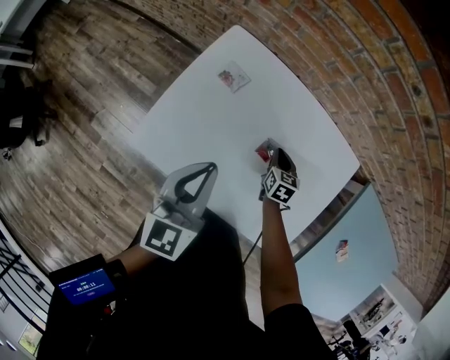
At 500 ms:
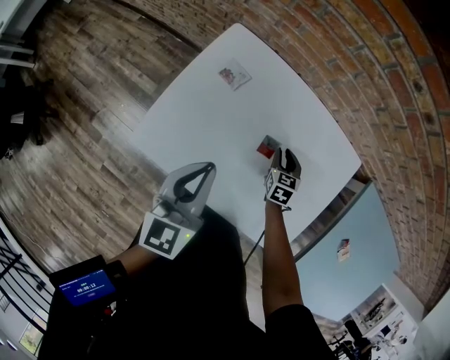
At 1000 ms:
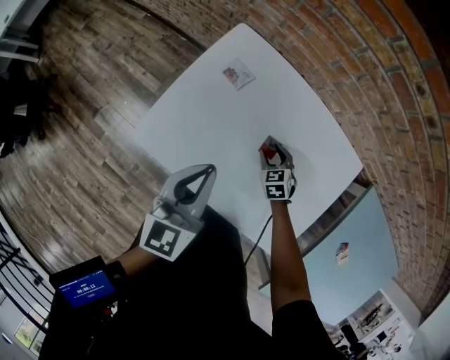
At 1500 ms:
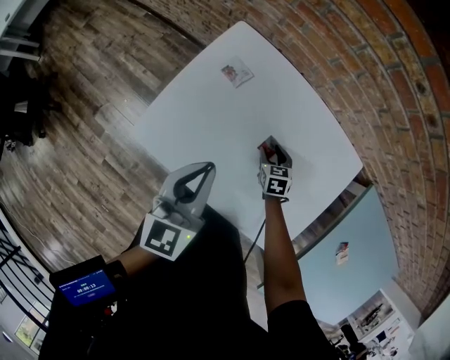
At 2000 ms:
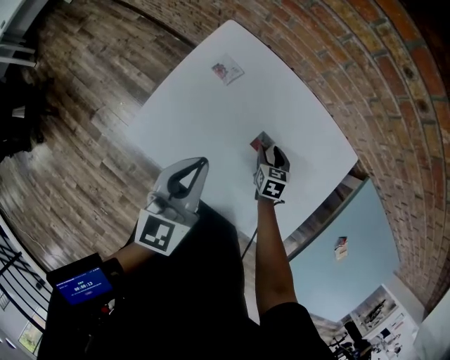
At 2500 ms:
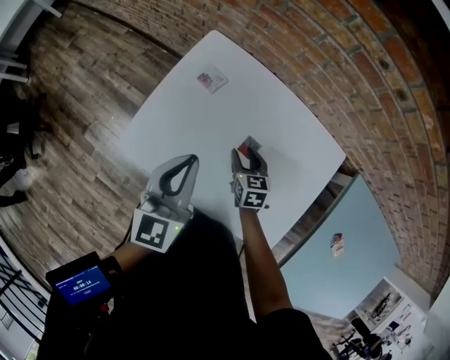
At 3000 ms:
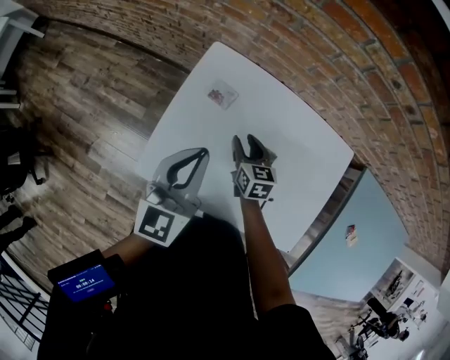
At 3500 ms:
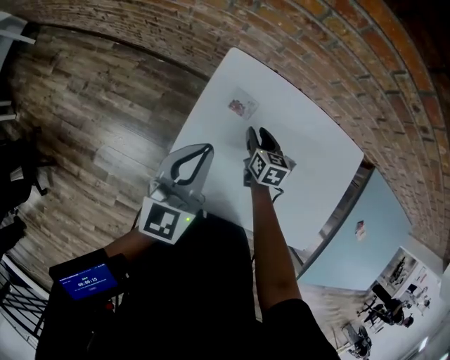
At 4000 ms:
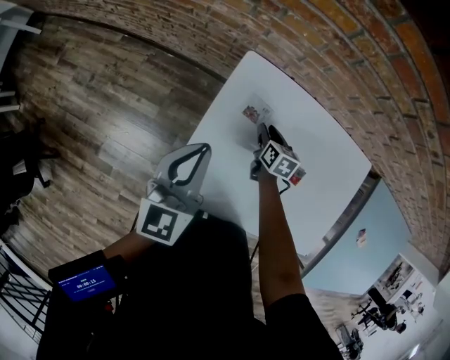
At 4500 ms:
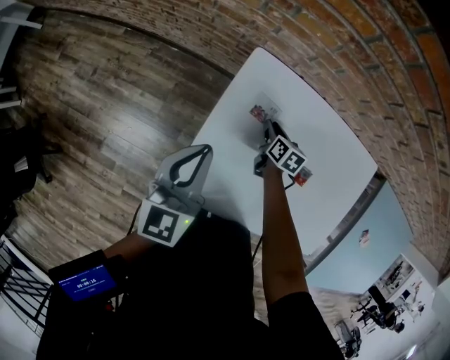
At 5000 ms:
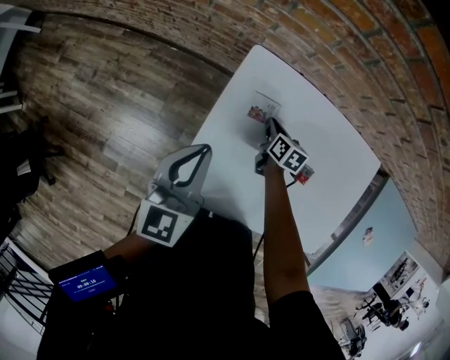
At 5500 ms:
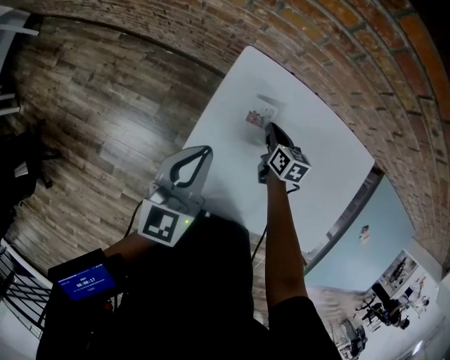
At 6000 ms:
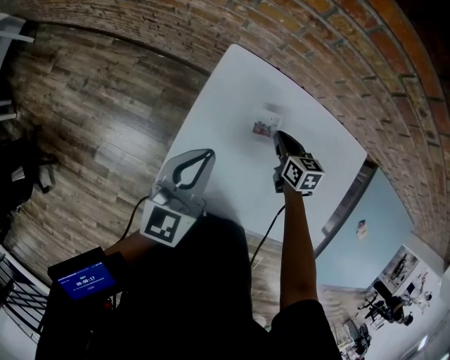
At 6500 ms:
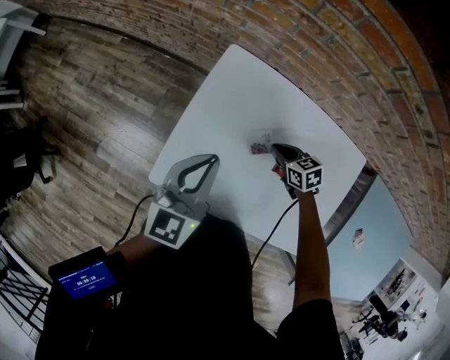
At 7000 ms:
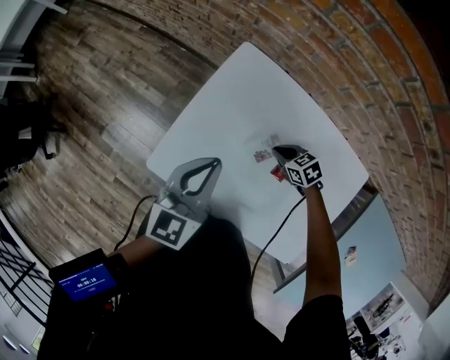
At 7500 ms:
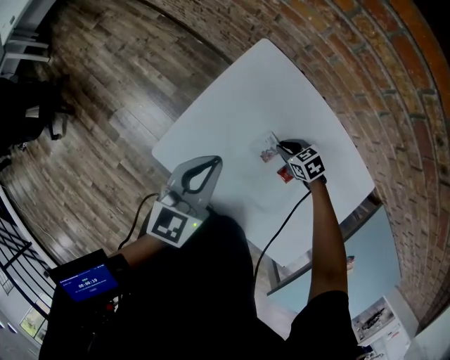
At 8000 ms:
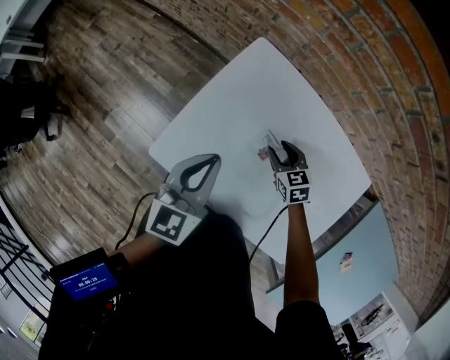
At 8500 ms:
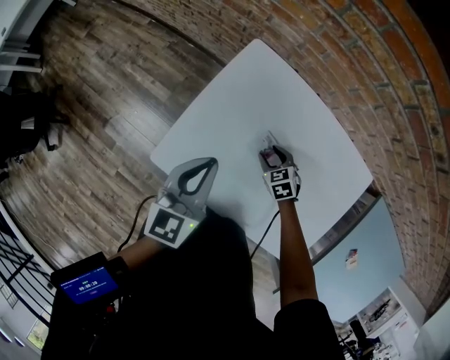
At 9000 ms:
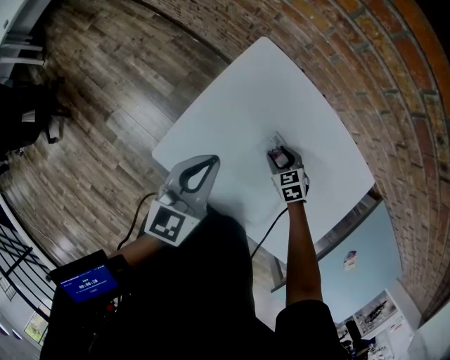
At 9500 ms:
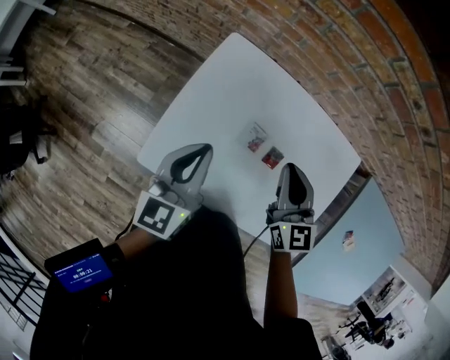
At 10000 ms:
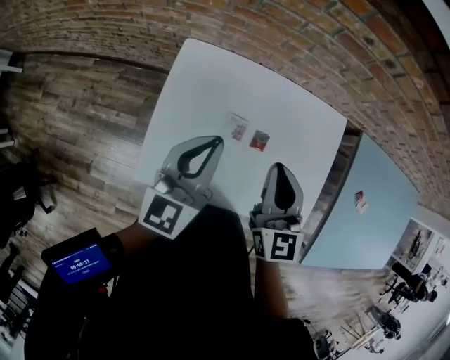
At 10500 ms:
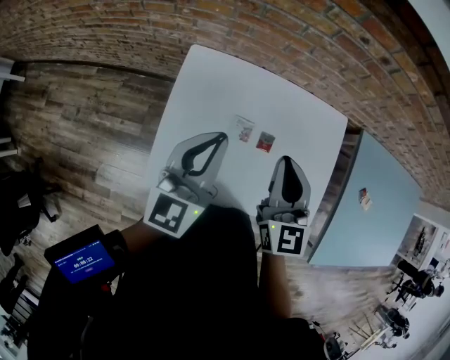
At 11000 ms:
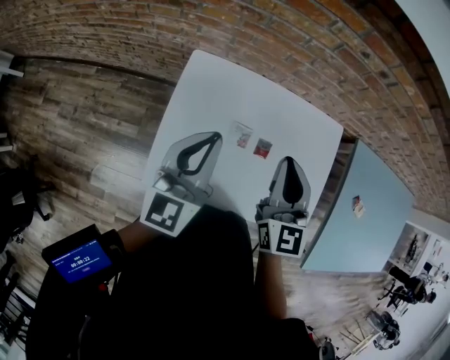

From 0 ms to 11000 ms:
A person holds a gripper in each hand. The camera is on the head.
From 0 ms to 2000 ms: The right gripper opens.
From 2000 ms to 3500 ms: Both grippers move to the left and forward, about 20 cm.
From 3500 ms to 5500 ms: The left gripper changes place by about 5 cm. The right gripper closes its fingers.
From 5500 ms to 7500 ms: The left gripper moves approximately 10 cm. Meanwhile the right gripper shifts by about 15 cm, and changes its angle by approximately 70 degrees.
From 7500 ms to 9000 ms: The right gripper rotates some 20 degrees, and opens its fingers.
From 9000 ms to 11000 ms: The right gripper heads upward, covering some 35 cm, tips its fingers upward by roughly 50 degrees, and closes; the left gripper travels upward by approximately 10 cm, and rotates roughly 30 degrees.

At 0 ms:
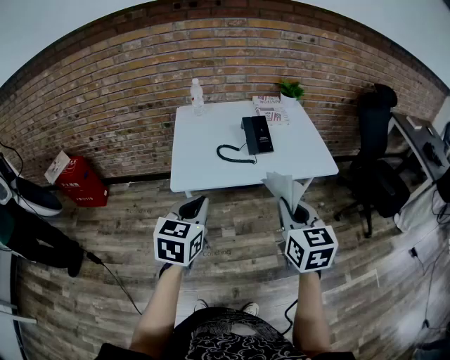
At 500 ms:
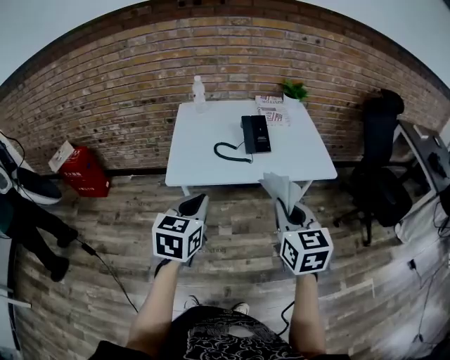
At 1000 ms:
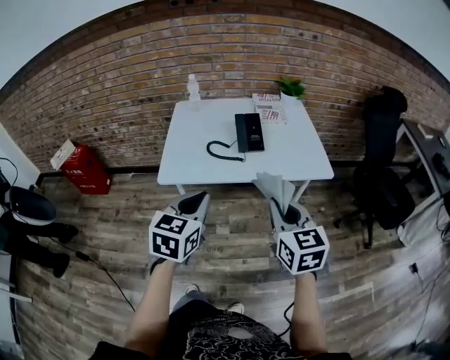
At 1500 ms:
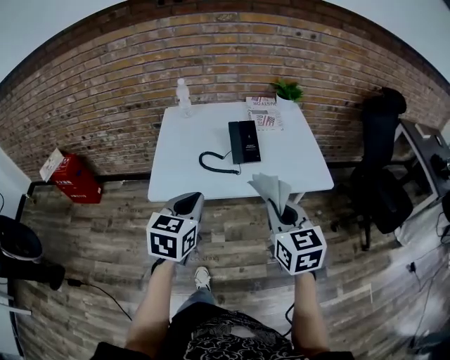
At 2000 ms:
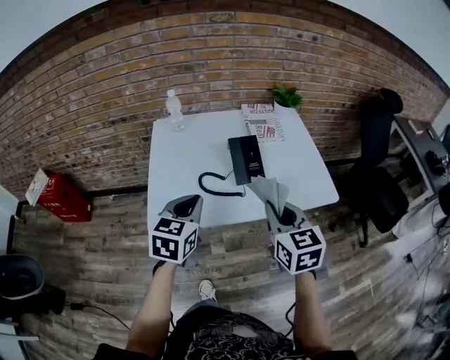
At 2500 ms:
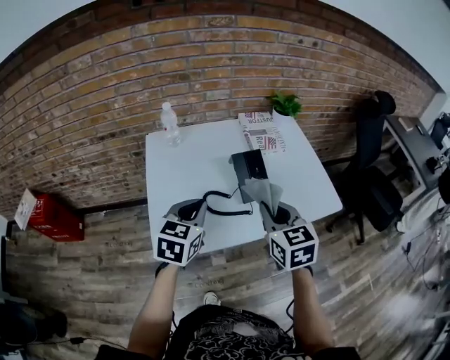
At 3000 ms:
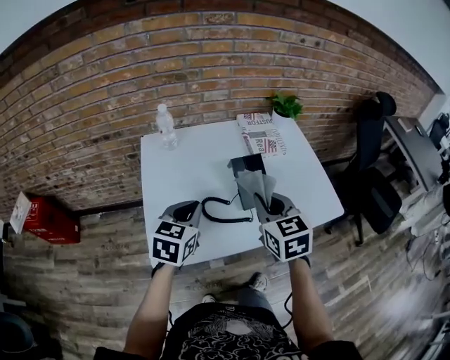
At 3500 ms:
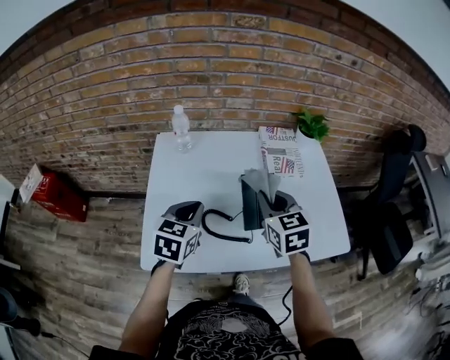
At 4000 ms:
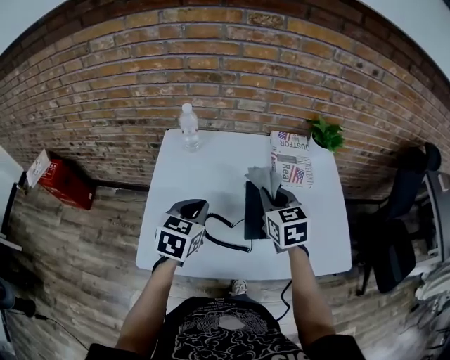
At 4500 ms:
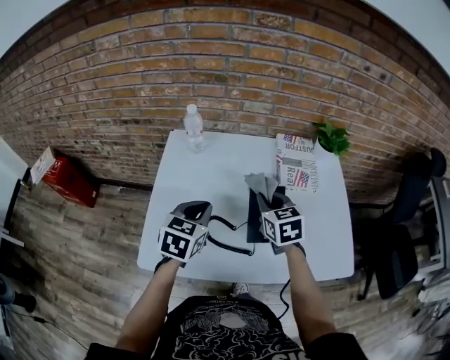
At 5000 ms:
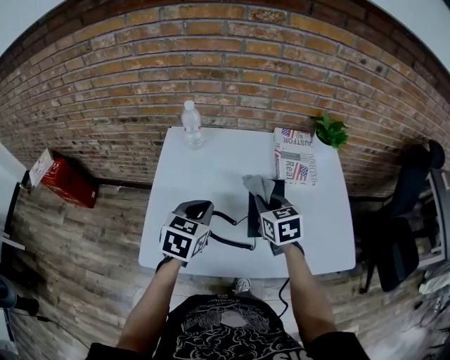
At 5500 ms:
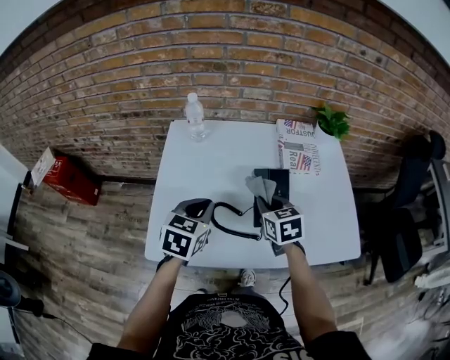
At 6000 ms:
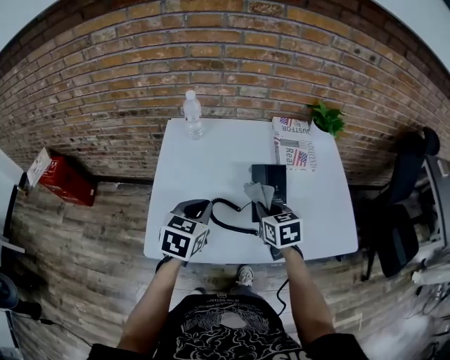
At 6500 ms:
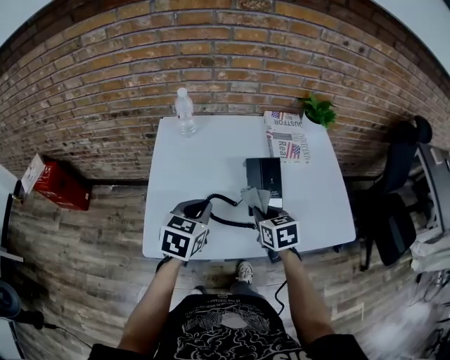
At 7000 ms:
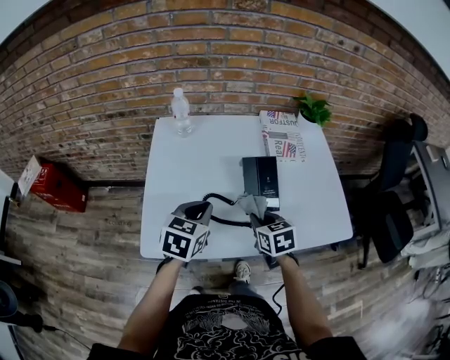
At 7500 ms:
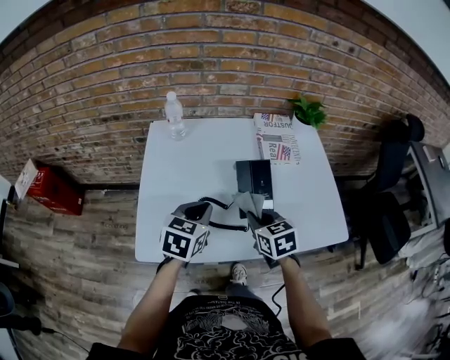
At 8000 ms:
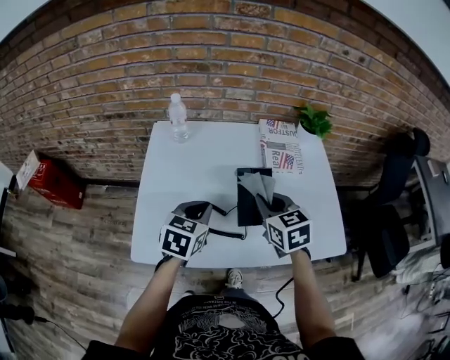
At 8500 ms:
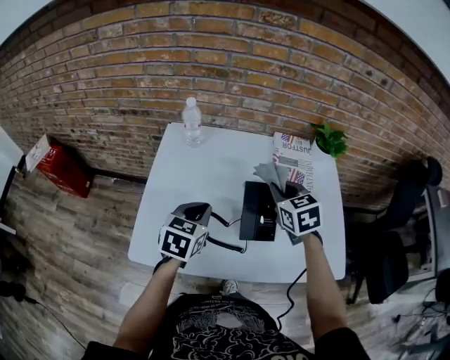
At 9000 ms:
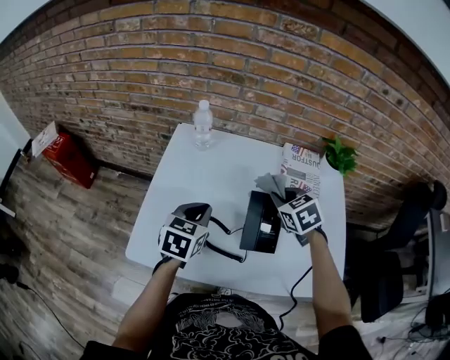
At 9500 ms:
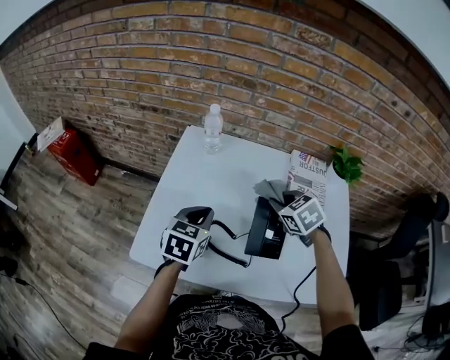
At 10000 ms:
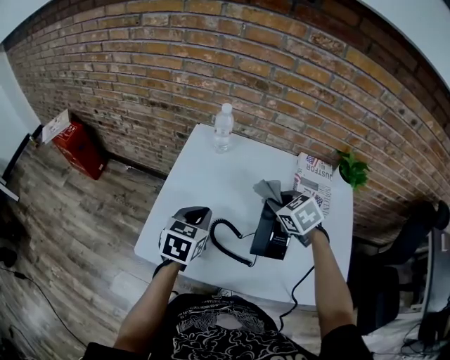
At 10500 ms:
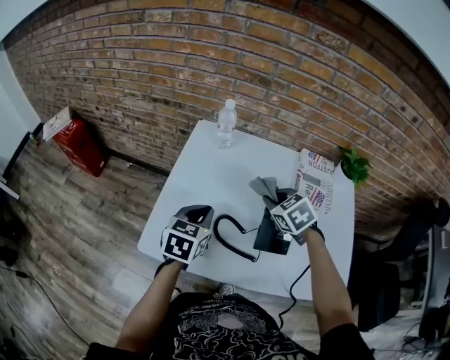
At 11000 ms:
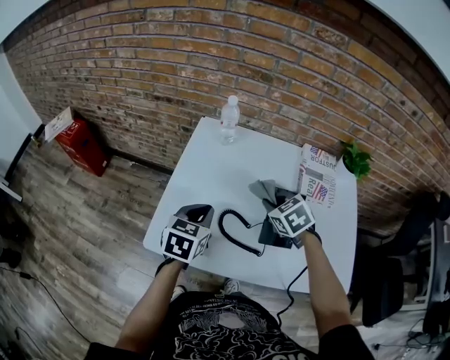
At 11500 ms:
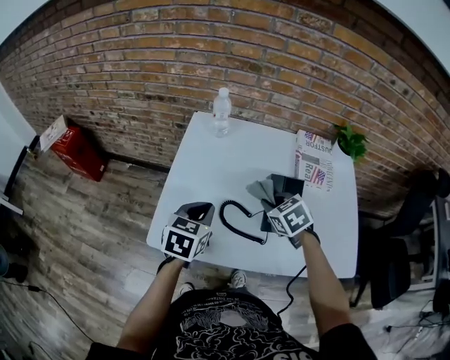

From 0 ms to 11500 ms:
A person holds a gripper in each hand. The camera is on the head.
From 0 ms to 2000 ms: Both grippers move forward, approximately 20 cm.
From 2000 ms to 4000 ms: Both grippers move forward, approximately 25 cm.
From 4000 ms to 6000 ms: The left gripper ends up about 5 cm from where it was. The right gripper goes roughly 10 cm downward and backward.
From 7500 ms to 9500 ms: The right gripper goes approximately 15 cm forward, and changes its angle by roughly 40 degrees; the left gripper moves forward, some 5 cm.
From 9500 ms to 11500 ms: The left gripper is displaced backward by about 5 cm. The right gripper shifts about 10 cm backward and to the left.

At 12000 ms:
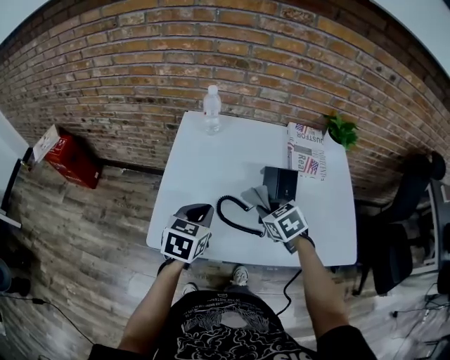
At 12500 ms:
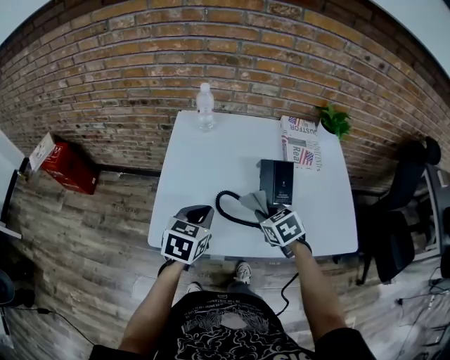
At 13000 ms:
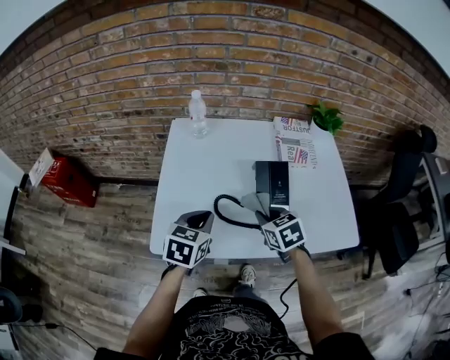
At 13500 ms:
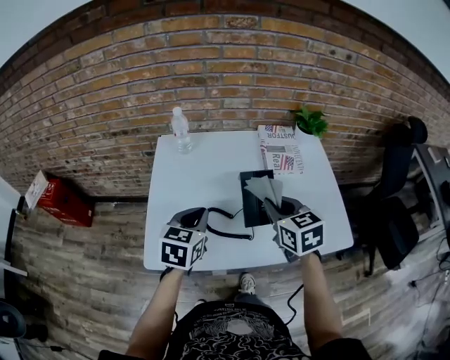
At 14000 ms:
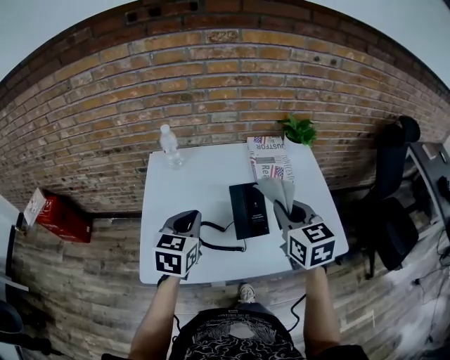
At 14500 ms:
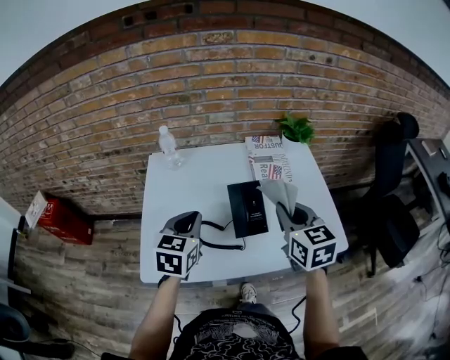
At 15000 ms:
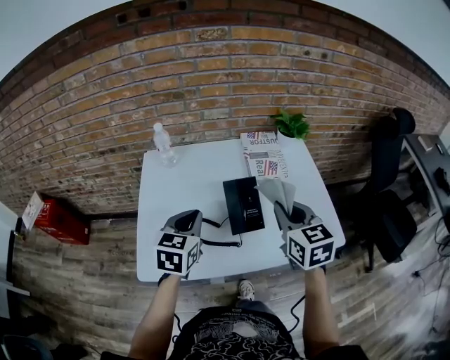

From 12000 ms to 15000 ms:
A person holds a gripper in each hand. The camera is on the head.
From 12000 ms to 13500 ms: The left gripper ends up roughly 5 cm from where it was, while the right gripper heads upward and to the right, covering about 15 cm, and changes its angle by about 30 degrees.
From 13500 ms to 15000 ms: The right gripper travels to the right by approximately 5 cm.

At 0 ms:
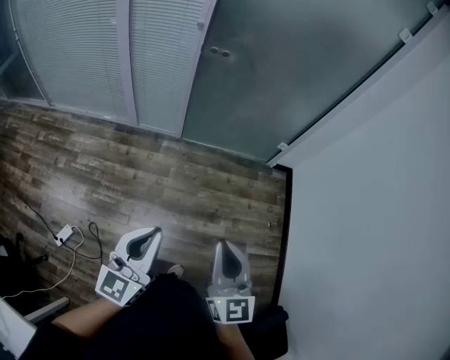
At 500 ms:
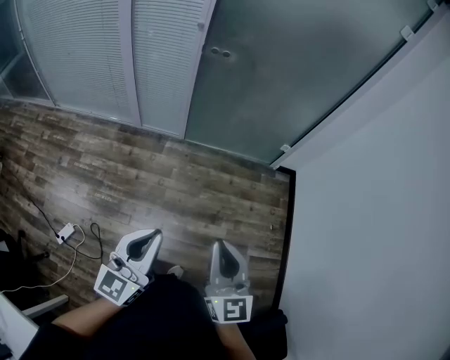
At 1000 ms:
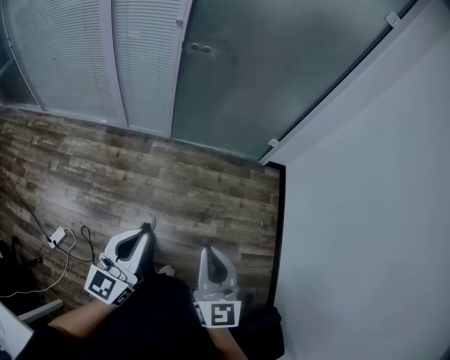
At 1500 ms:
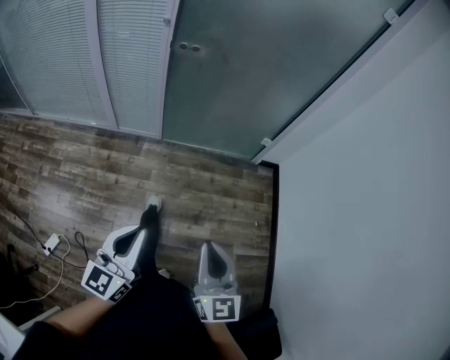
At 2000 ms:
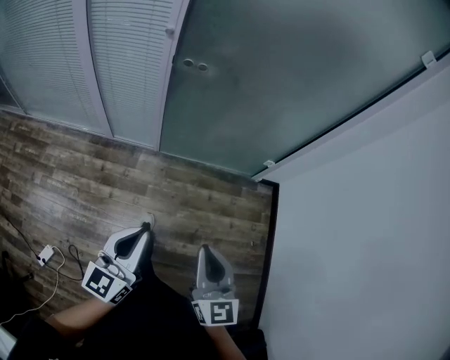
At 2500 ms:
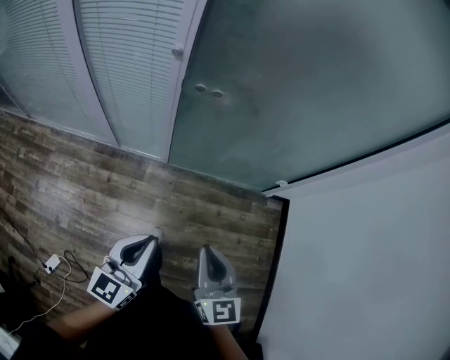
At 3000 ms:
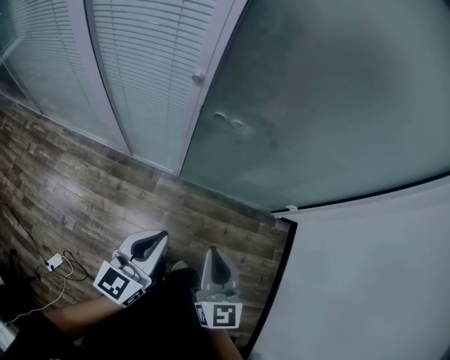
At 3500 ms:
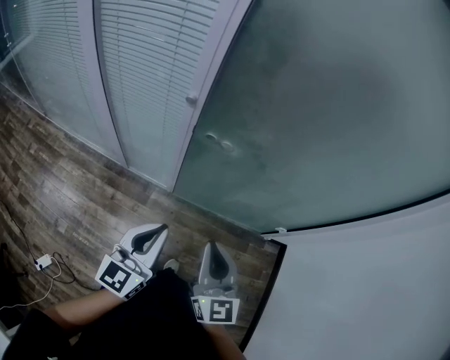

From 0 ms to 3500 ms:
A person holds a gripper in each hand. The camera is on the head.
From 0 ms to 2000 ms: Both grippers travel together forward, about 20 cm.
From 2000 ms to 3500 ms: The two grippers go approximately 30 cm forward.
